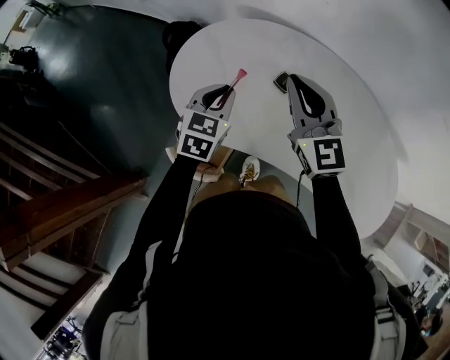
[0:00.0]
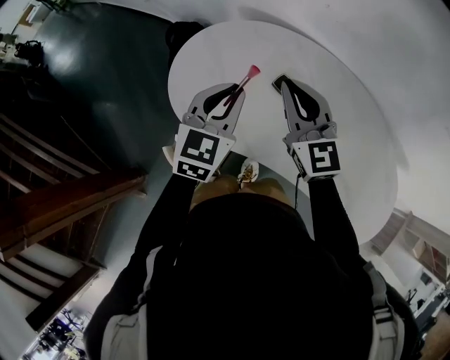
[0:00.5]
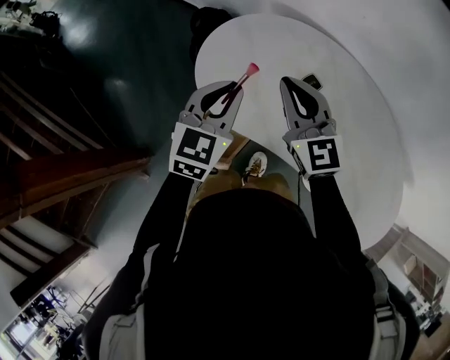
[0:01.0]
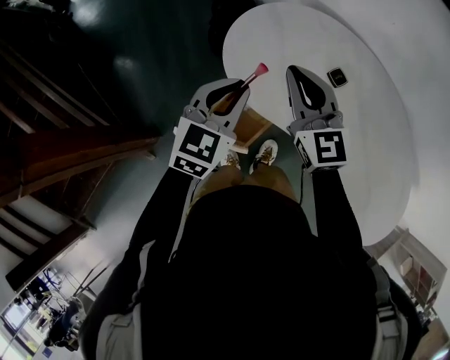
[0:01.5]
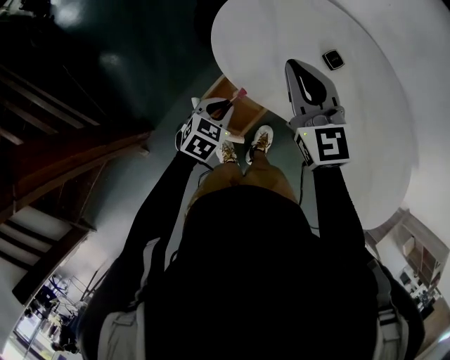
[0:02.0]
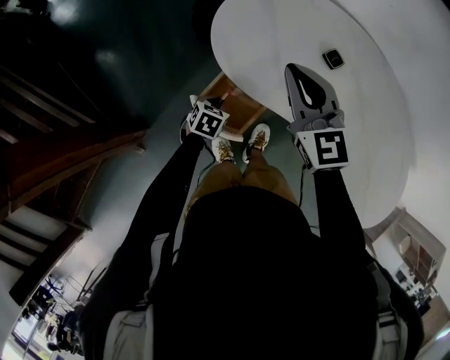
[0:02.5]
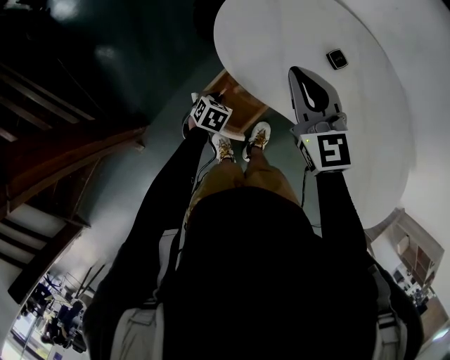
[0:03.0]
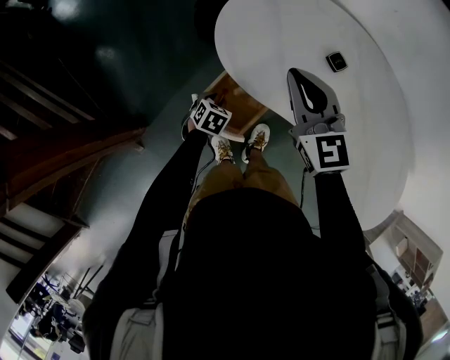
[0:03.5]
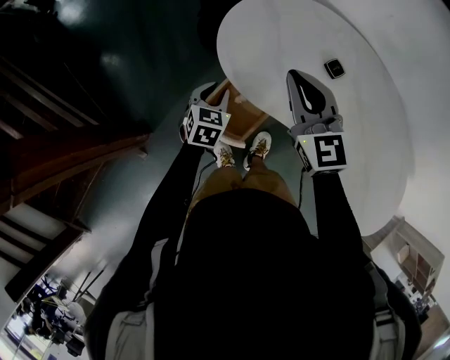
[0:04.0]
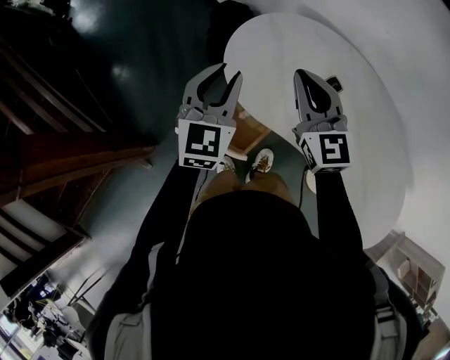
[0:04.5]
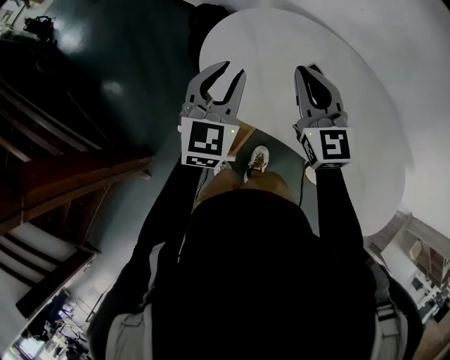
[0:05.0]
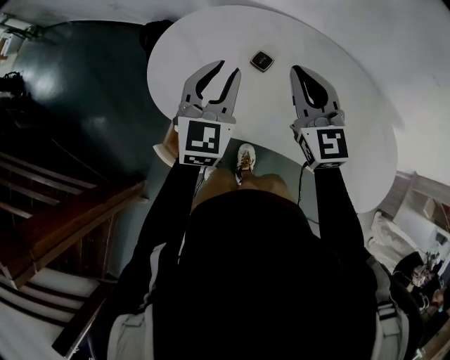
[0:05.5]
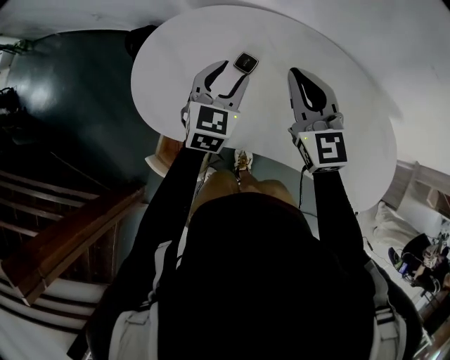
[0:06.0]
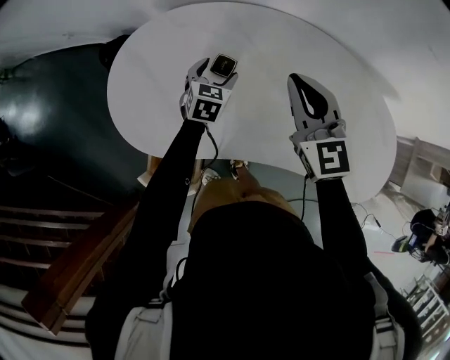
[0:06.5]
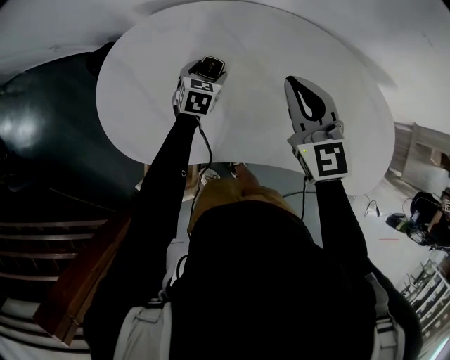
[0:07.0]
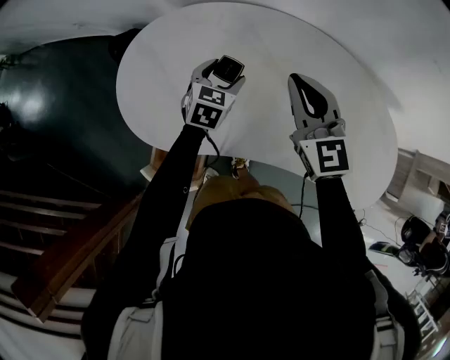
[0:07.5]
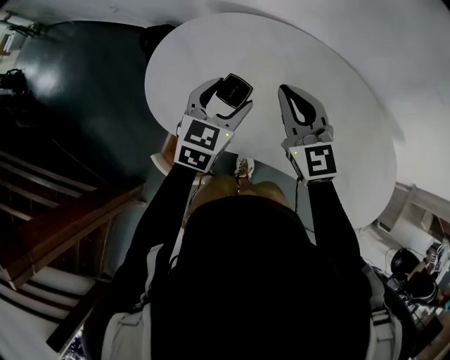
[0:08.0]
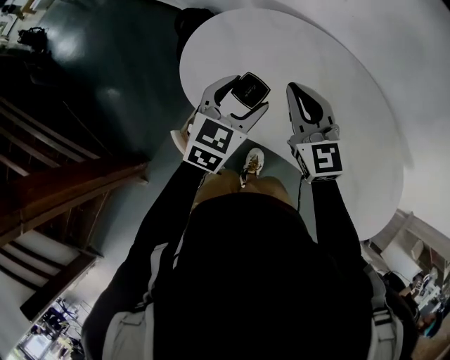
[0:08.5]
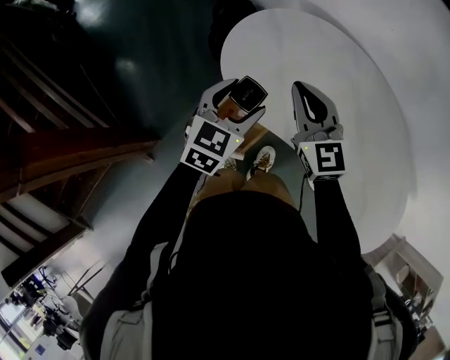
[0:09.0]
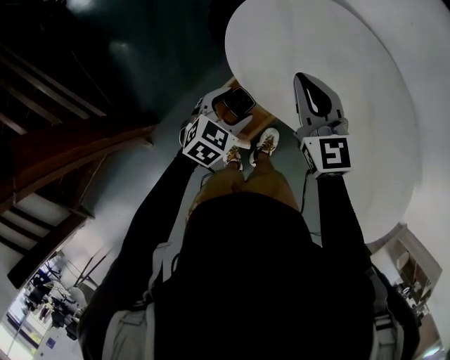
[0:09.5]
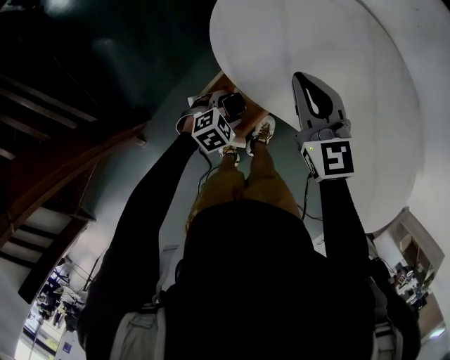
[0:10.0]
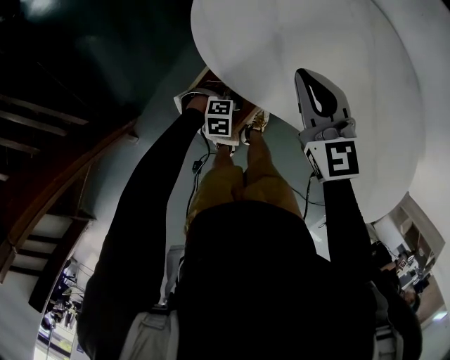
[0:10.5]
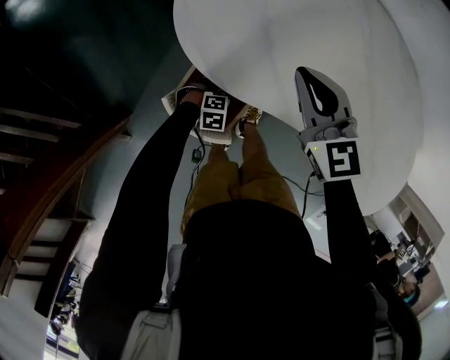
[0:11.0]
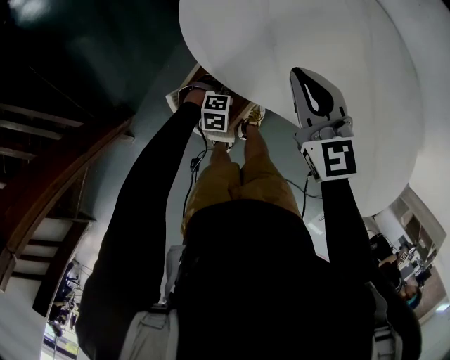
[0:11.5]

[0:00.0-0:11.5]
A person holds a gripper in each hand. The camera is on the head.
0.0 to 2.0 s: The right gripper heads to the left, covering roughly 15 cm; the left gripper goes about 25 cm backward, downward and to the left.
2.0 to 4.0 s: The left gripper shifts about 5 cm forward, and moves approximately 15 cm downward and comes back.
4.0 to 6.0 s: The right gripper ends up about 25 cm from where it was, and rotates roughly 30 degrees. The left gripper ends up some 35 cm from where it was, and turns by roughly 30 degrees.
6.0 to 7.5 s: The left gripper shifts approximately 10 cm downward, and opens up.
7.5 to 9.5 s: The left gripper shifts approximately 35 cm to the left and backward; the right gripper goes about 30 cm to the left, and changes its angle by some 30 degrees.
9.5 to 11.5 s: The left gripper goes about 25 cm downward, and changes its angle by some 60 degrees, while the right gripper heads downward, covering roughly 5 cm.

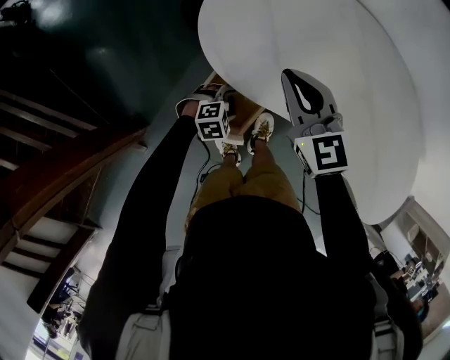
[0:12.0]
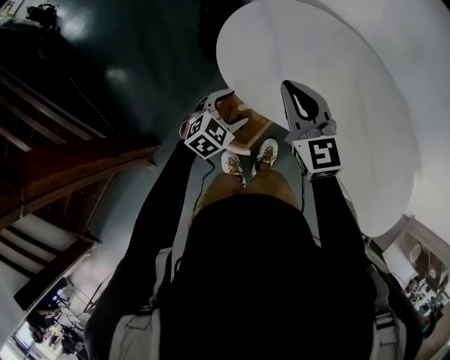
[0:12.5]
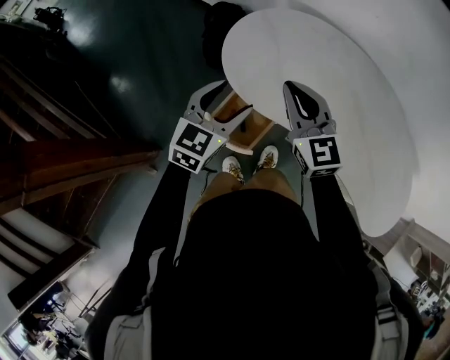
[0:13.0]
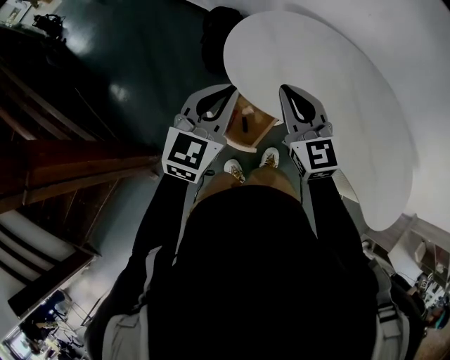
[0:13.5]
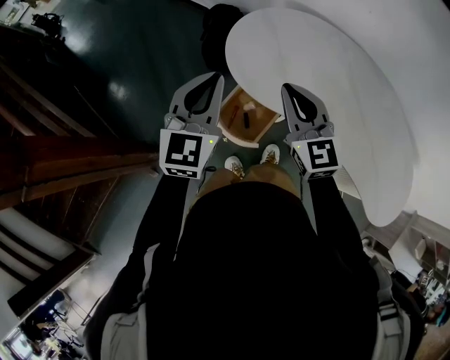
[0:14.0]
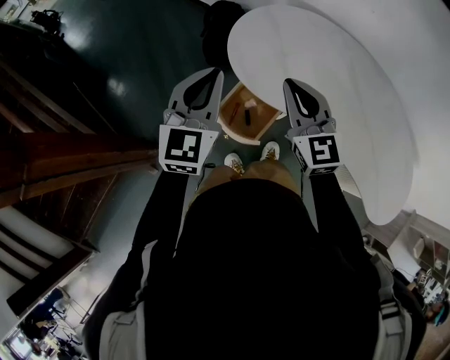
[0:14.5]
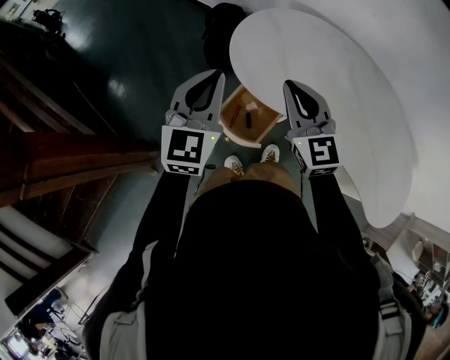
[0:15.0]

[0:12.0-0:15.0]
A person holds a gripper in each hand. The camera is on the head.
12.0 to 13.5 s: The right gripper heads upward and backward, covering some 10 cm. Meanwhile the left gripper heads upward, covering some 40 cm, angles its fingers upward, by some 50 degrees, and closes.
13.5 to 15.0 s: The left gripper shifts about 5 cm to the left.

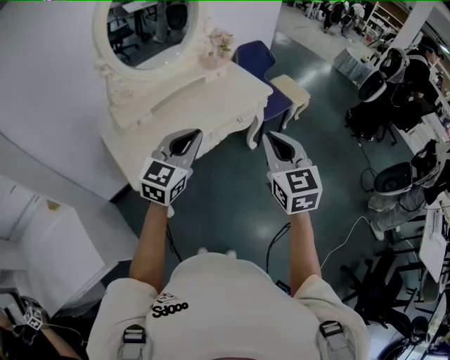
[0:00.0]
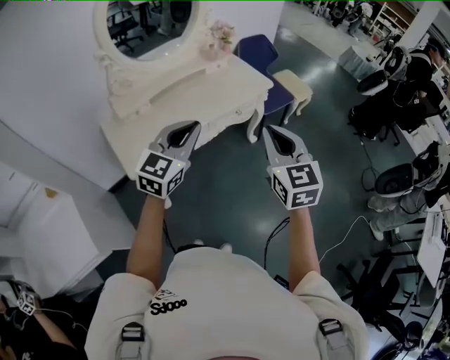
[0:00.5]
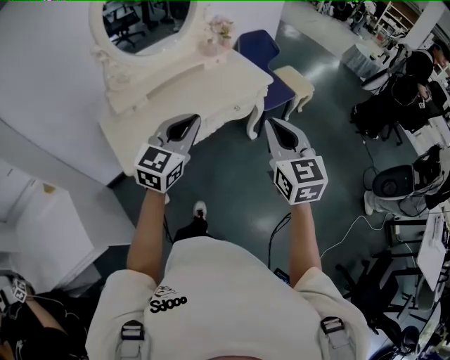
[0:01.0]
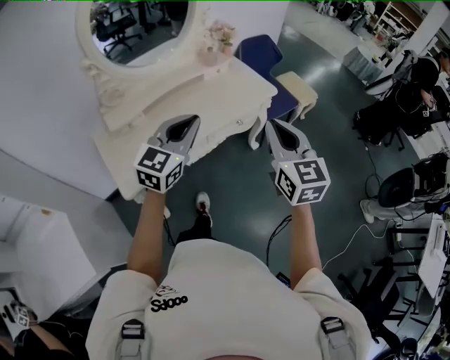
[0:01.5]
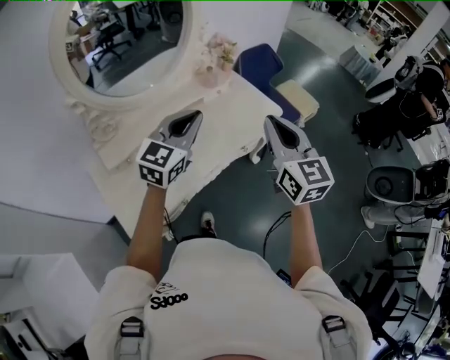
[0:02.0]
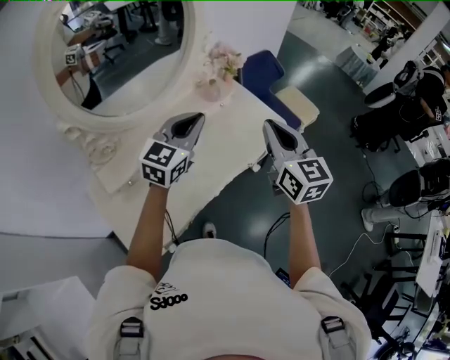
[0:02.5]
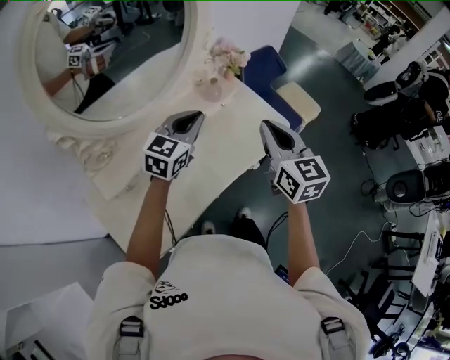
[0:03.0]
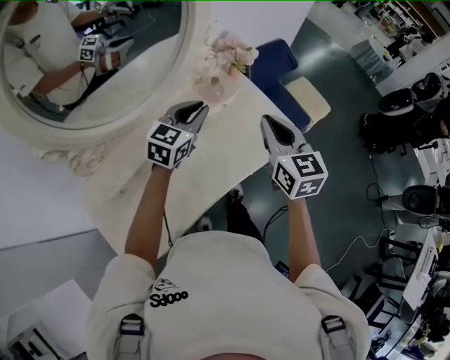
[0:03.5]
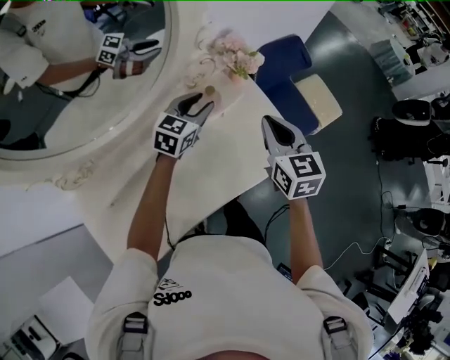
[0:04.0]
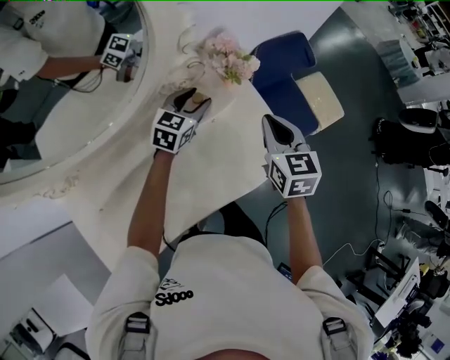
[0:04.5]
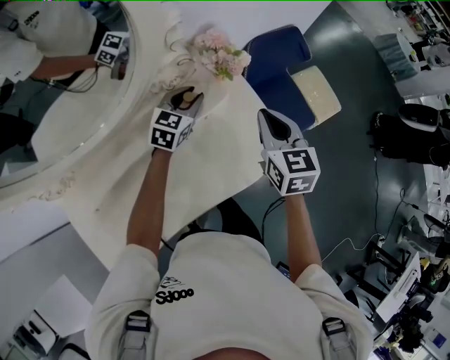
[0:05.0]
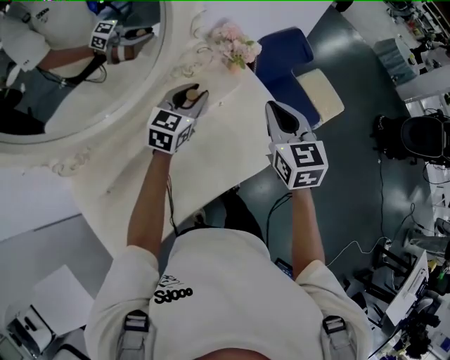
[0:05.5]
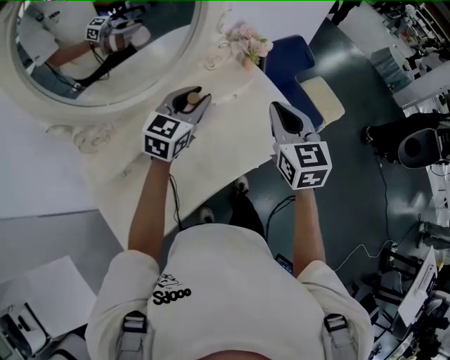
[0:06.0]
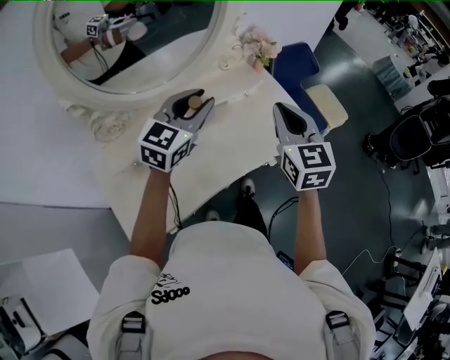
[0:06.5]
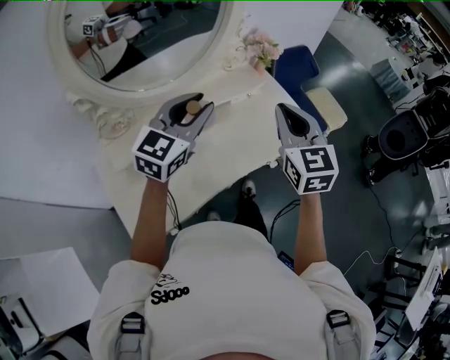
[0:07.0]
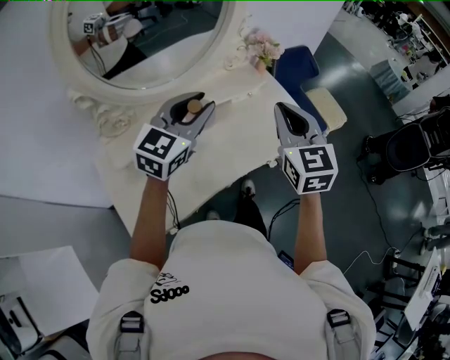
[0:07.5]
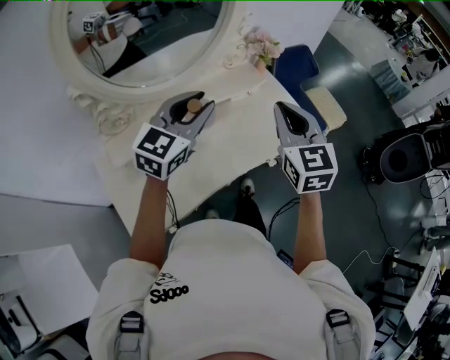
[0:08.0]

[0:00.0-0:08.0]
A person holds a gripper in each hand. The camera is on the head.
0.0 to 2.0 s: The two grippers go roughly 25 cm forward.
2.0 to 4.0 s: The right gripper moves forward, approximately 35 cm, and changes its angle by approximately 20 degrees. Meanwhile the left gripper shifts approximately 40 cm forward and downward, rotates some 20 degrees, and opens up.
4.0 to 6.0 s: The grippers both shift backward and upward by some 15 cm.
6.0 to 8.0 s: The right gripper travels backward by roughly 10 cm, while the left gripper goes about 15 cm backward and upward.

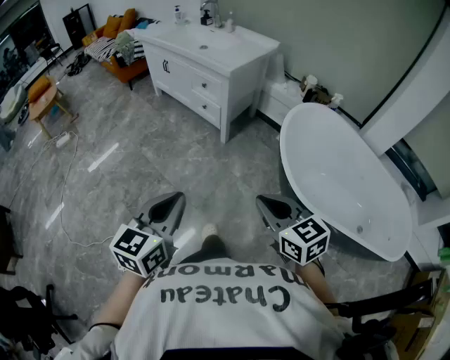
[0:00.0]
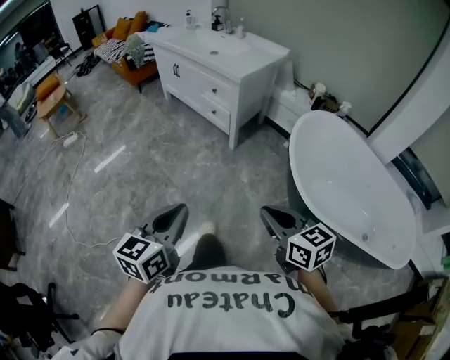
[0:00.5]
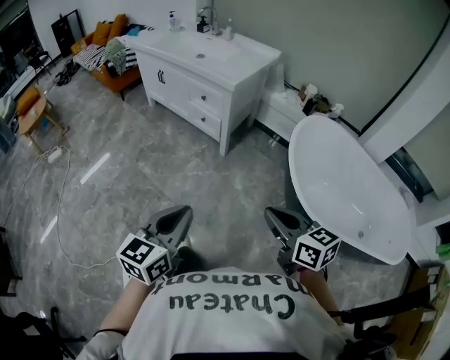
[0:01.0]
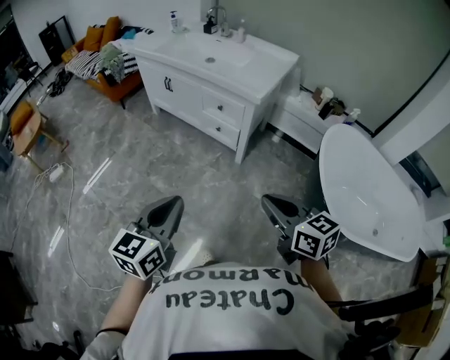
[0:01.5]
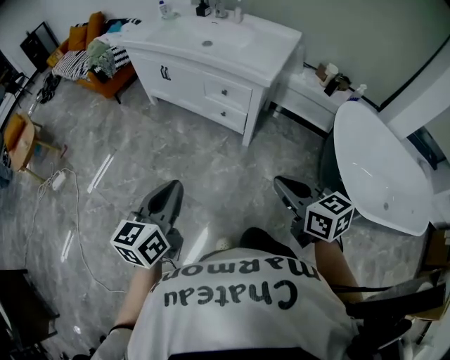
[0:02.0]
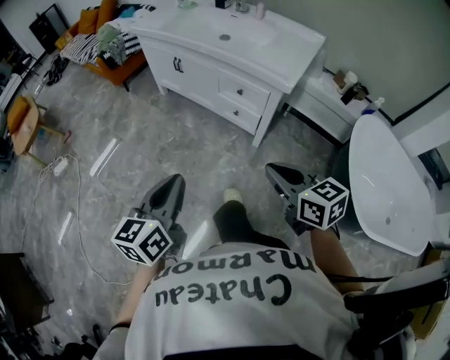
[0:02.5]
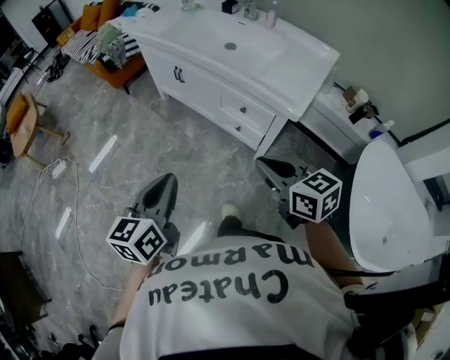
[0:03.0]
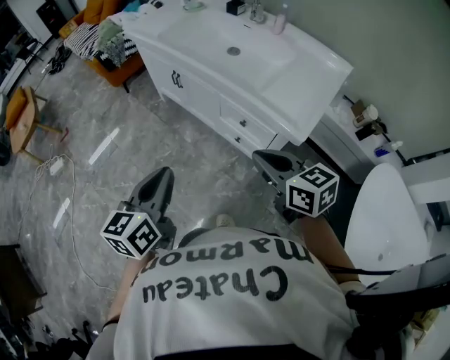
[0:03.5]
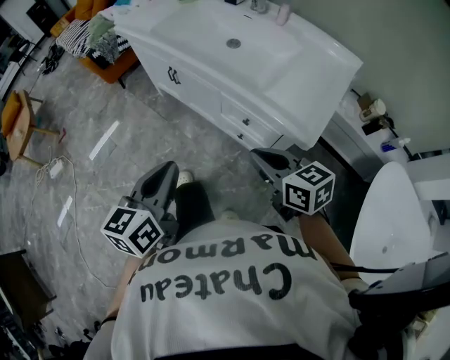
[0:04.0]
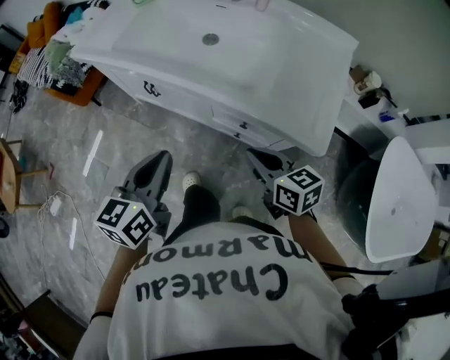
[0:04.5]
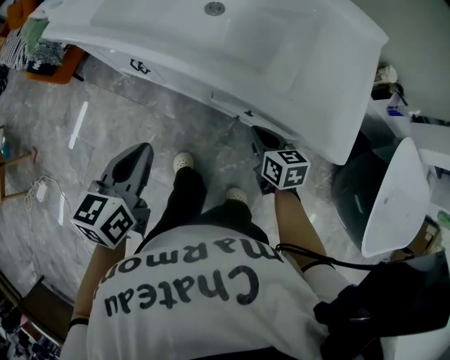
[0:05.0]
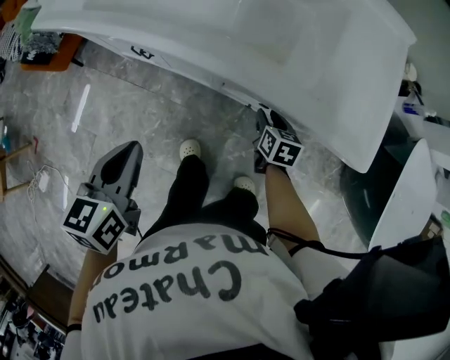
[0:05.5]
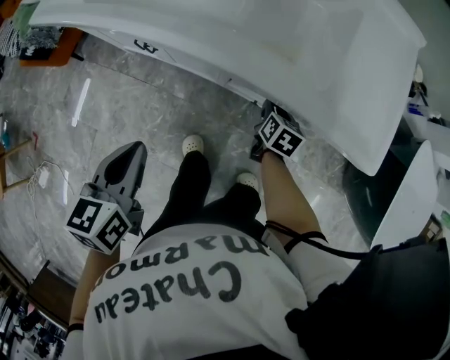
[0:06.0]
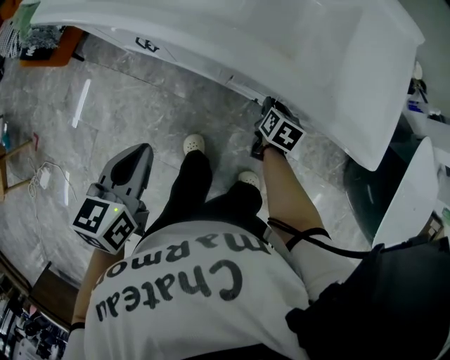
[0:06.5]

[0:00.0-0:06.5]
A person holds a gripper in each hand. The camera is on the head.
0.0 to 2.0 s: Both grippers travel together forward and to the left, roughly 35 cm.
2.0 to 4.5 s: The two grippers travel together, forward, roughly 50 cm.
4.5 to 6.5 s: The right gripper shifts roughly 25 cm downward, changes its angle by roughly 50 degrees, and opens its fingers. The left gripper moves downward, approximately 10 cm.
